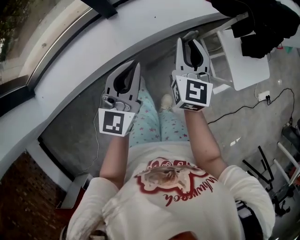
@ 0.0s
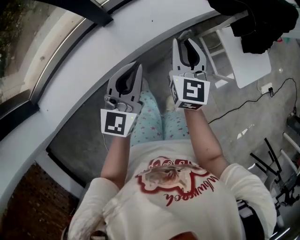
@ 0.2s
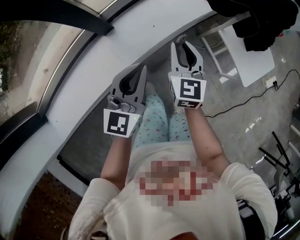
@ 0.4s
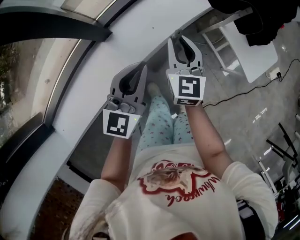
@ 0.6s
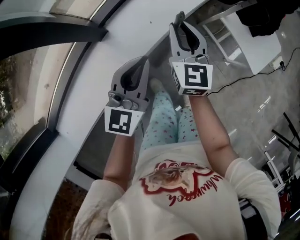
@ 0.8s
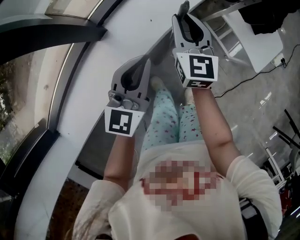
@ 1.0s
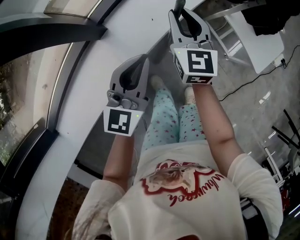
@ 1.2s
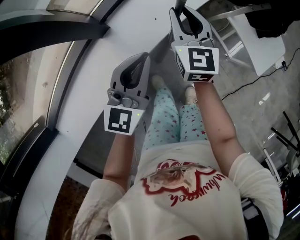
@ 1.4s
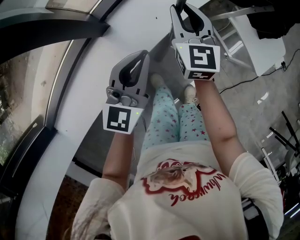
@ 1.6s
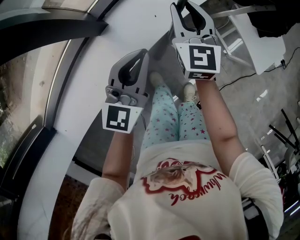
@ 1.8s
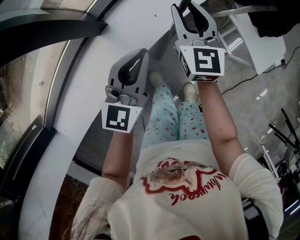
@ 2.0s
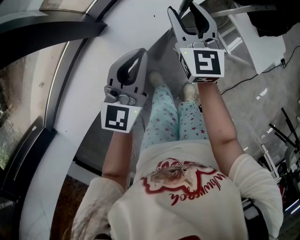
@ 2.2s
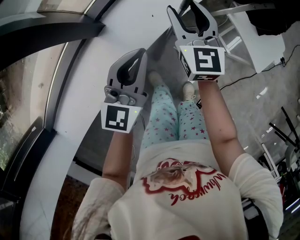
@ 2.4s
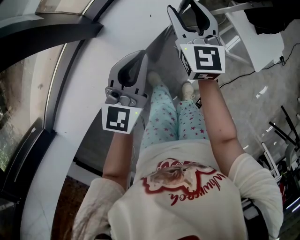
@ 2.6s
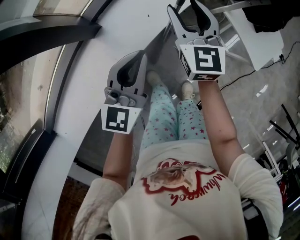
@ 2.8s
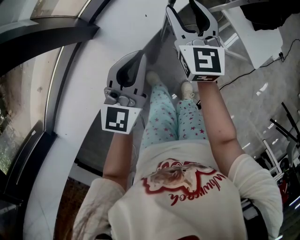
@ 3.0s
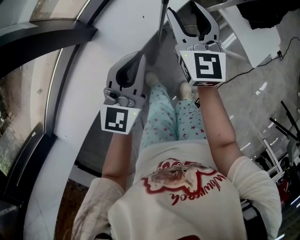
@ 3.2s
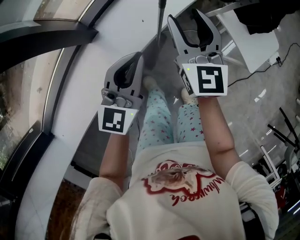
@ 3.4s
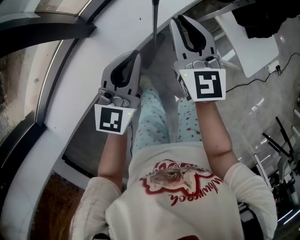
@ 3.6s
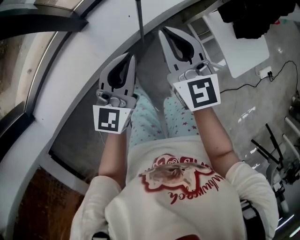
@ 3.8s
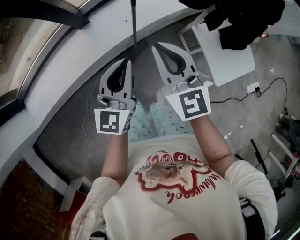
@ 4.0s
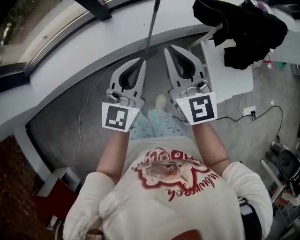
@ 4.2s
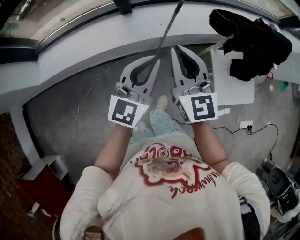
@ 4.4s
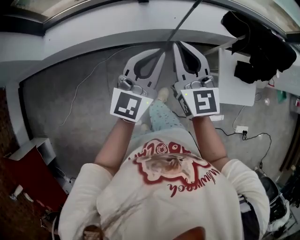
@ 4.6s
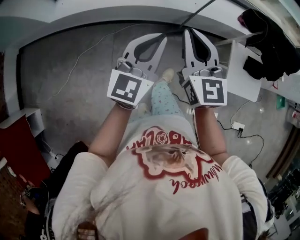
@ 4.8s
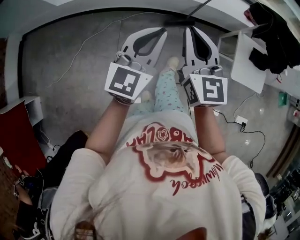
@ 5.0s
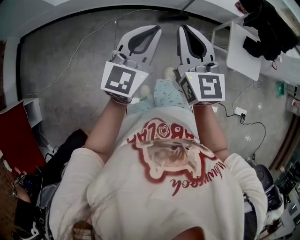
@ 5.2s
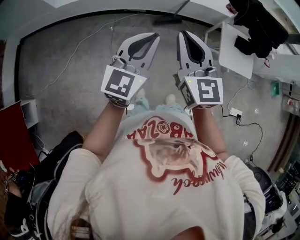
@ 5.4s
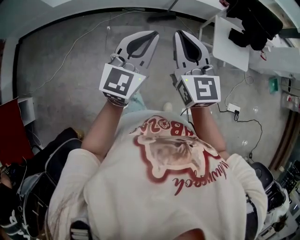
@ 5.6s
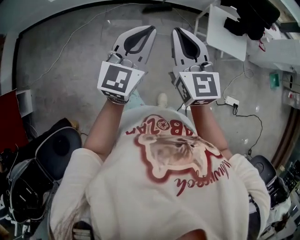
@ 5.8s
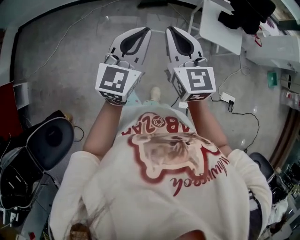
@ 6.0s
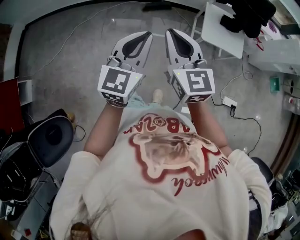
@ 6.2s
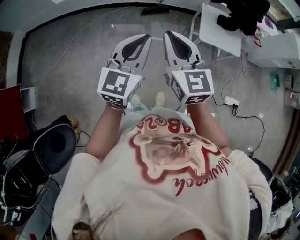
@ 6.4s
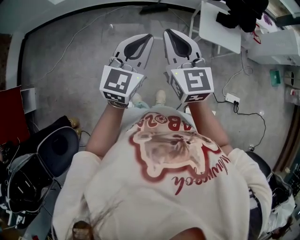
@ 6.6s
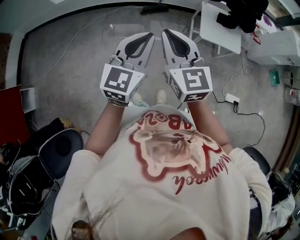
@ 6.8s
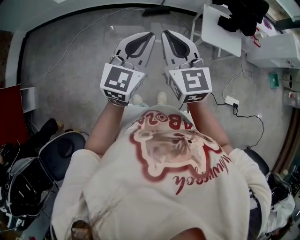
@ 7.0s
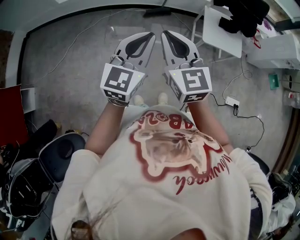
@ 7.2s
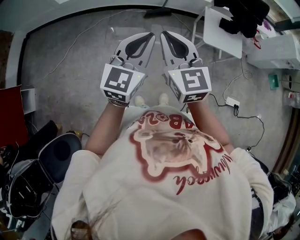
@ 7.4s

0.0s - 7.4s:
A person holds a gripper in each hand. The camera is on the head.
0.0s - 1.4s: The left gripper travels forward, downward and to the left by approximately 15 cm, and rotates roughly 20 degrees; the right gripper moves forward, to the left and downward, roughly 20 cm.
1.4s - 3.0s: The right gripper opens its fingers.
3.0s - 4.4s: The left gripper changes place by approximately 30 cm, and changes its angle by some 30 degrees. Meanwhile the right gripper shifts by about 35 cm, turns by about 40 degrees, and closes up.
4.4s - 6.0s: The two grippers travel together, backward, roughly 50 cm.
6.0s - 7.4s: The right gripper heads to the left, covering roughly 5 cm.

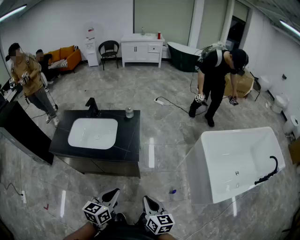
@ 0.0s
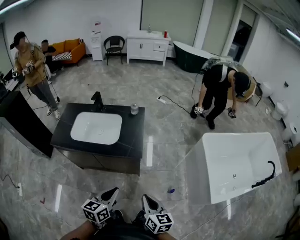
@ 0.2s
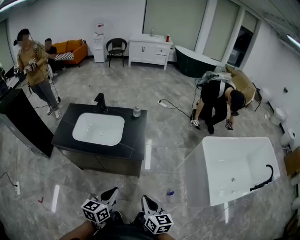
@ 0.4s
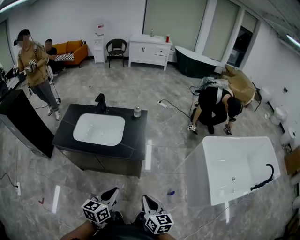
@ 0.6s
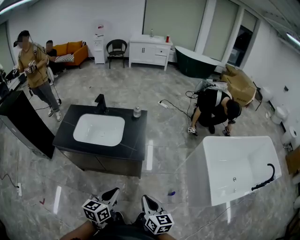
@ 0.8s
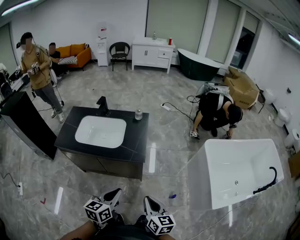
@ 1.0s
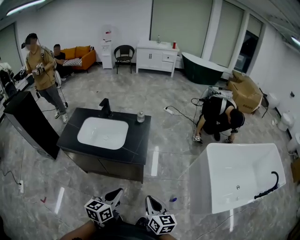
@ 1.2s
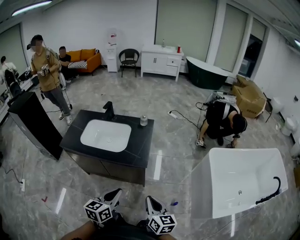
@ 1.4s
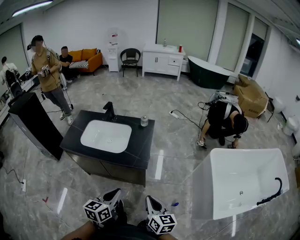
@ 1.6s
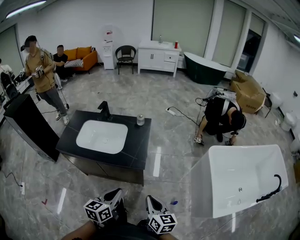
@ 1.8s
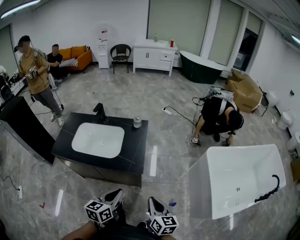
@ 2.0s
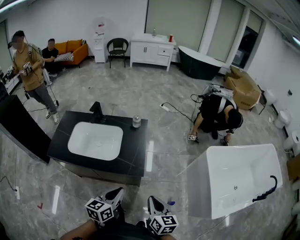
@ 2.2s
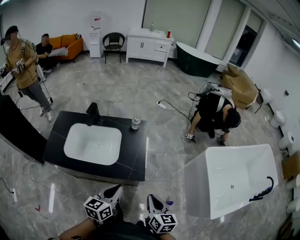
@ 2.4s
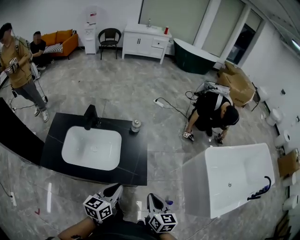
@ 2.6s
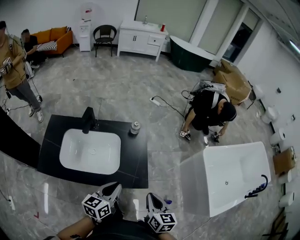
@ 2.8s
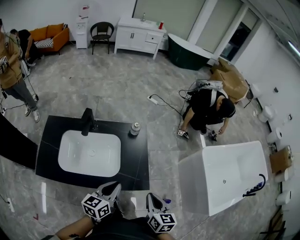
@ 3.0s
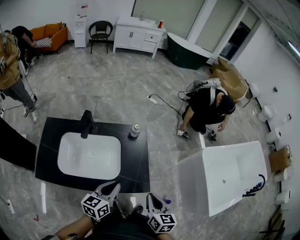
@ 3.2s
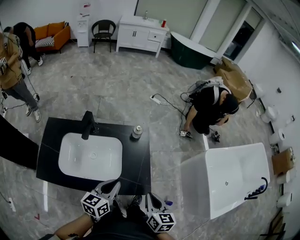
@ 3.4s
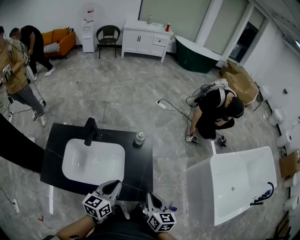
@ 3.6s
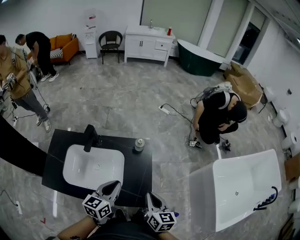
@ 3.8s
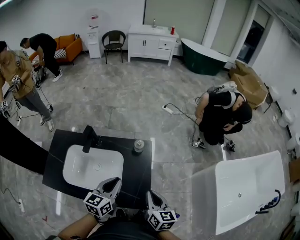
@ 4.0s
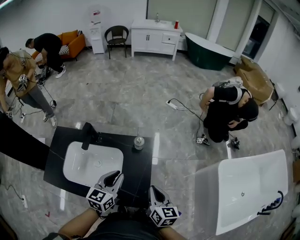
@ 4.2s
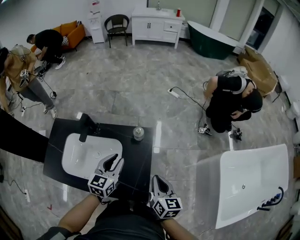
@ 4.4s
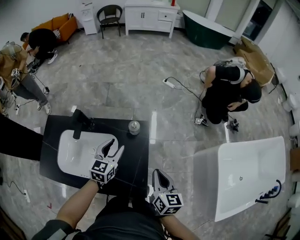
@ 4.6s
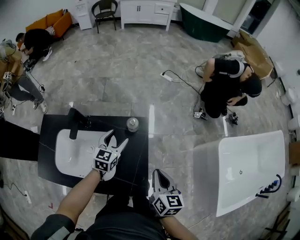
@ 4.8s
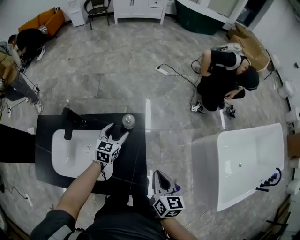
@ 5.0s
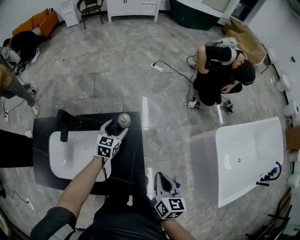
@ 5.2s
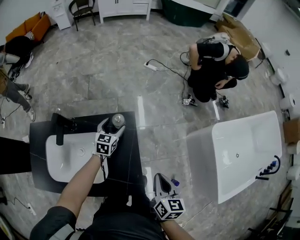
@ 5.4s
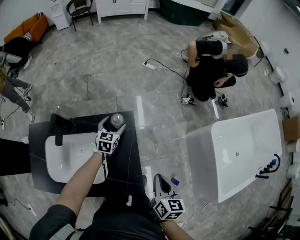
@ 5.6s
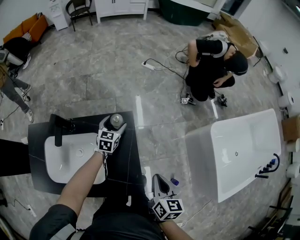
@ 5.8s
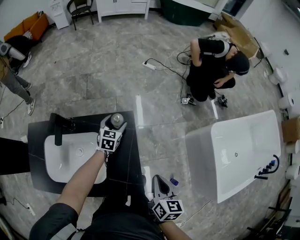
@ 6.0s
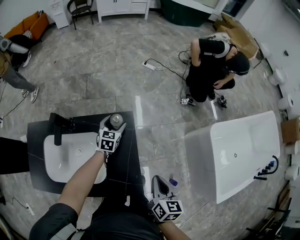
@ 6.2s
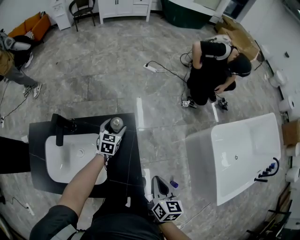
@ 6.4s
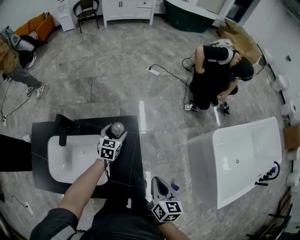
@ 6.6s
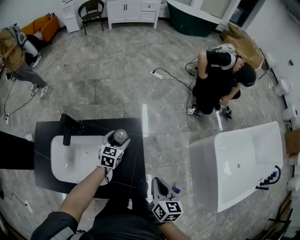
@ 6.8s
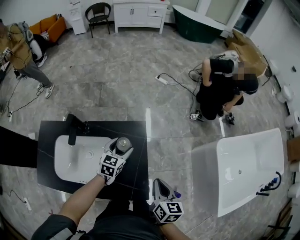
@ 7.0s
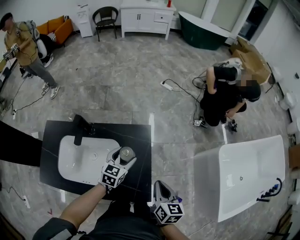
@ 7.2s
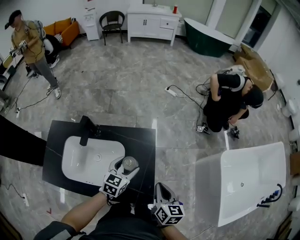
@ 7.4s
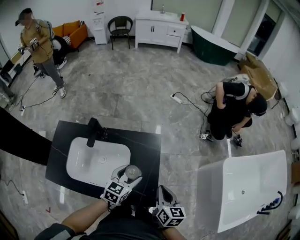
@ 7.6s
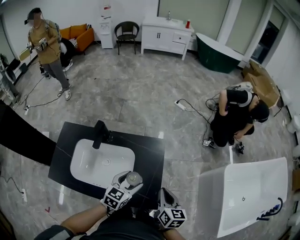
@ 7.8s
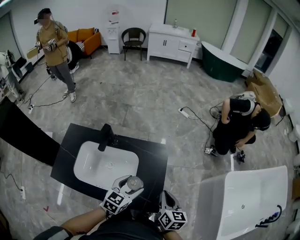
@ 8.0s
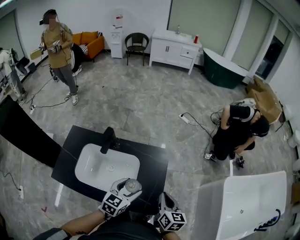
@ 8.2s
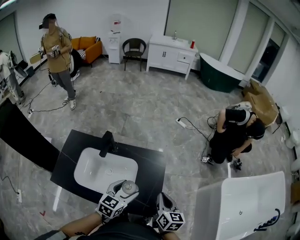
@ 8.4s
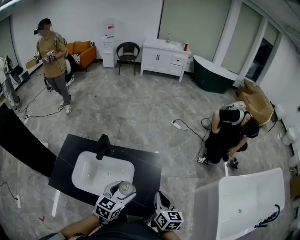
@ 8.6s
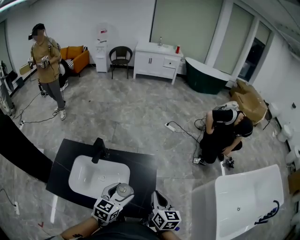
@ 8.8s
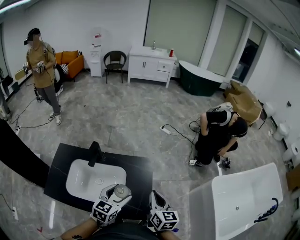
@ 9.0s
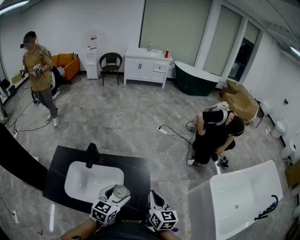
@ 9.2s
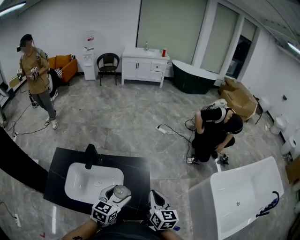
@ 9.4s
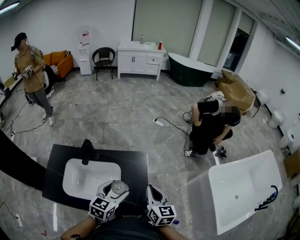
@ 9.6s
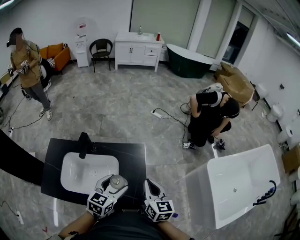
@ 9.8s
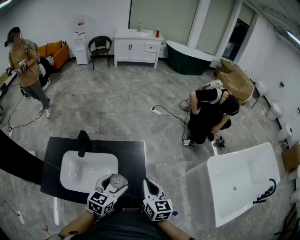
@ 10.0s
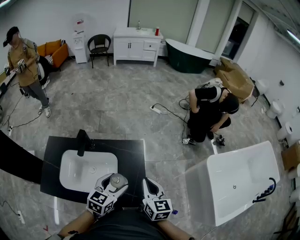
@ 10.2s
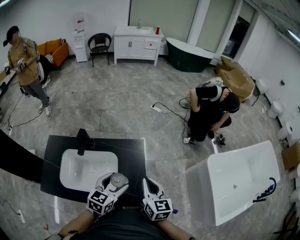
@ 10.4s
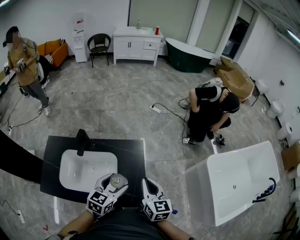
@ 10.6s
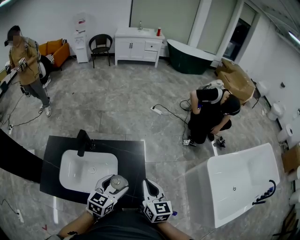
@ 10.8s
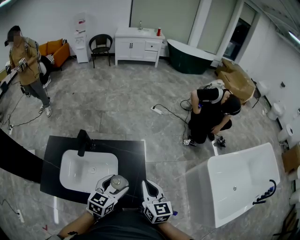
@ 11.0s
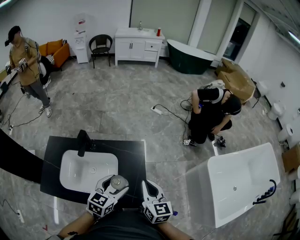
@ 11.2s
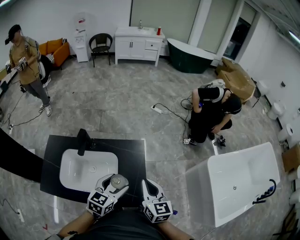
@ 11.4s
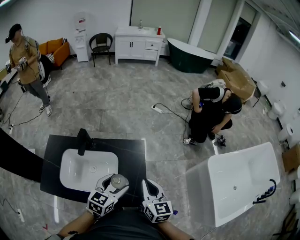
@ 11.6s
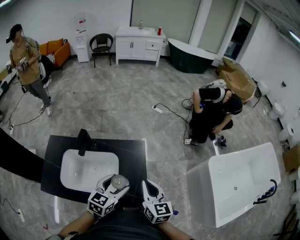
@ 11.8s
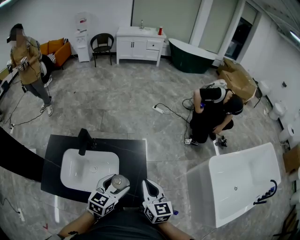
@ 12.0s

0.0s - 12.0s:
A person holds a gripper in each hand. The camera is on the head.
0.0s - 1.6s: The grippers make only small movements.
1.6s - 3.0s: Both grippers travel together forward and to the left, some 25 cm. The right gripper turns by about 20 degrees.
3.0s - 4.4s: The grippers both shift forward by approximately 20 cm. The left gripper rotates some 30 degrees.
4.4s - 6.0s: The left gripper is displaced forward and downward by about 25 cm, and opens its fingers. The right gripper ends up about 5 cm from where it was.
6.0s - 7.6s: The left gripper travels backward and upward by approximately 25 cm, while the right gripper travels to the left by some 5 cm.
7.6s - 9.0s: The right gripper heads upward, covering some 10 cm. Meanwhile the left gripper is displaced upward and backward by roughly 10 cm.
9.0s - 10.4s: The grippers make only small movements.
10.4s - 12.0s: Both grippers stay about where they are.

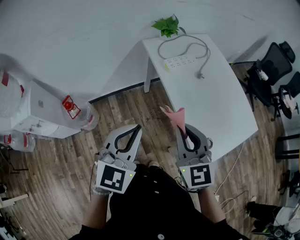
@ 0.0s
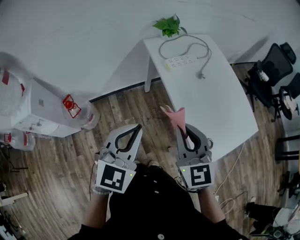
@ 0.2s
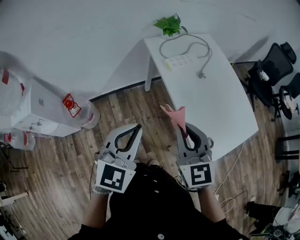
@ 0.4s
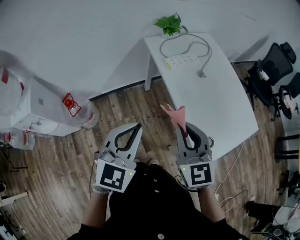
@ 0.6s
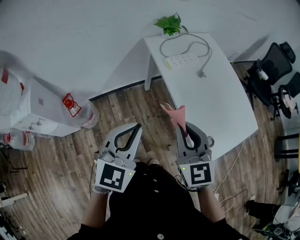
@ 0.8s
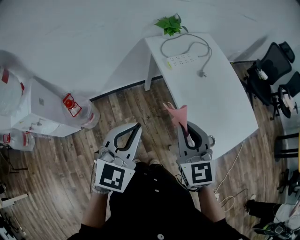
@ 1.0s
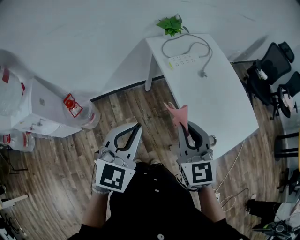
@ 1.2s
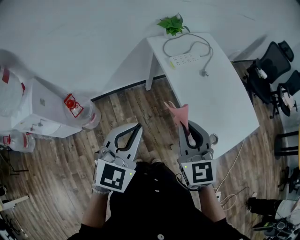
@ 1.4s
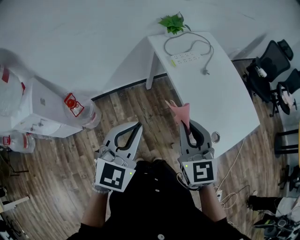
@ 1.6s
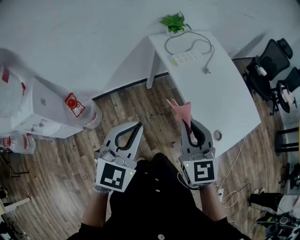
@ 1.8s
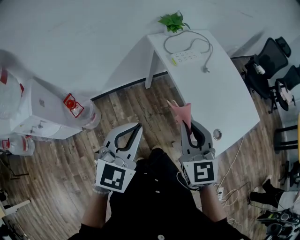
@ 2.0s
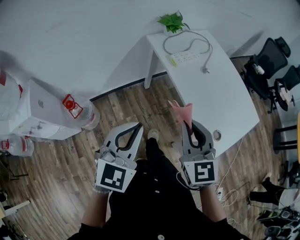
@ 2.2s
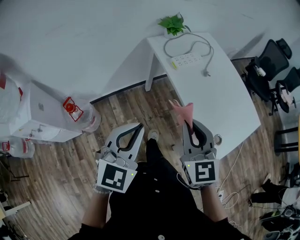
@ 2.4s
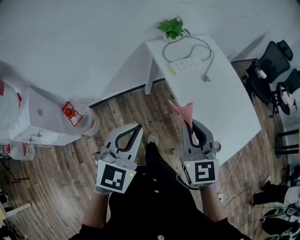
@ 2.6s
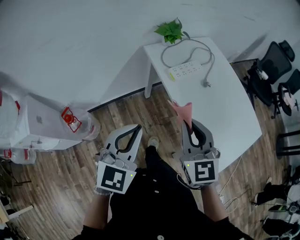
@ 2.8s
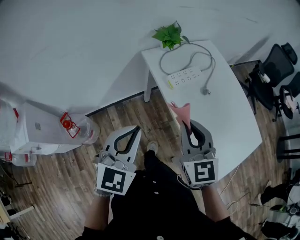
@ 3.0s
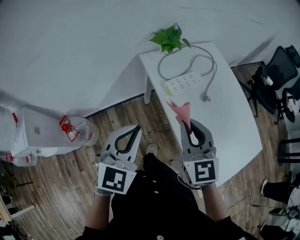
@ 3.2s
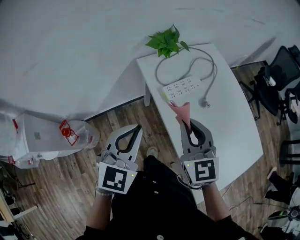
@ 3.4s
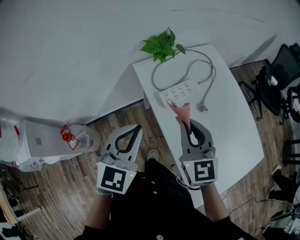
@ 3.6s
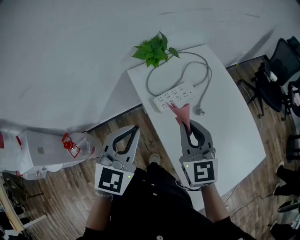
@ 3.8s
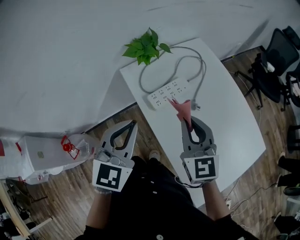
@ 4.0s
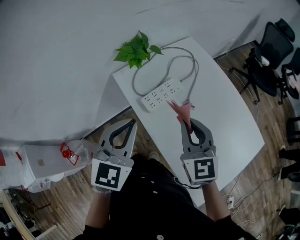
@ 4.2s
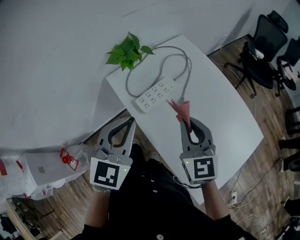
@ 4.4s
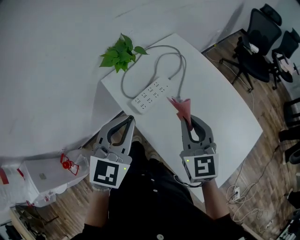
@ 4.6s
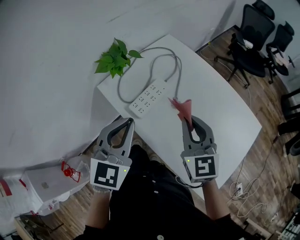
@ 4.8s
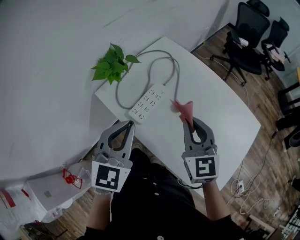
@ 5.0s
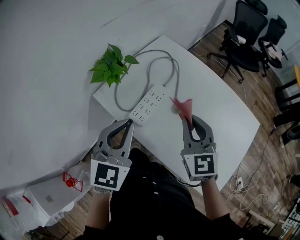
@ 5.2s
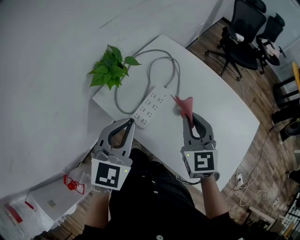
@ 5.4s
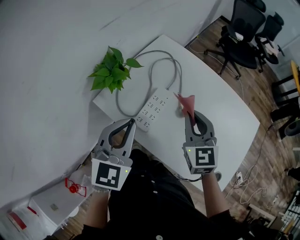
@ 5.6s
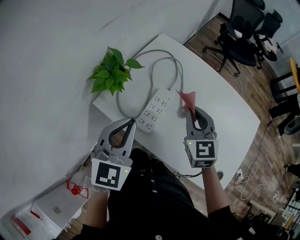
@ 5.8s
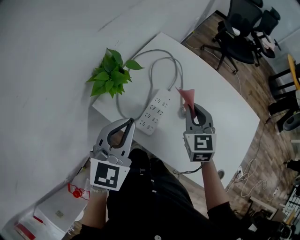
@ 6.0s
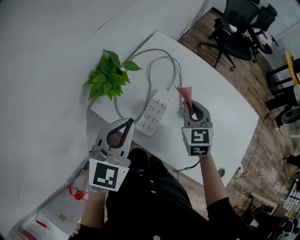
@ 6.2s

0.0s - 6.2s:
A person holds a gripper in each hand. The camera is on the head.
0.0s - 1.6s: The left gripper goes roughly 5 cm to the left.
1.6s - 3.2s: Both grippers move forward, roughly 20 cm.
3.2s - 4.6s: The left gripper travels forward and to the right by approximately 20 cm. The right gripper shifts some 20 cm to the right and forward.
4.6s - 6.2s: The right gripper heads forward and downward, covering approximately 20 cm, and changes its angle by approximately 30 degrees. The left gripper heads forward and to the left, covering approximately 15 cm.
